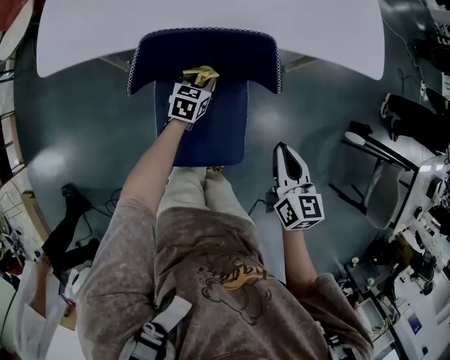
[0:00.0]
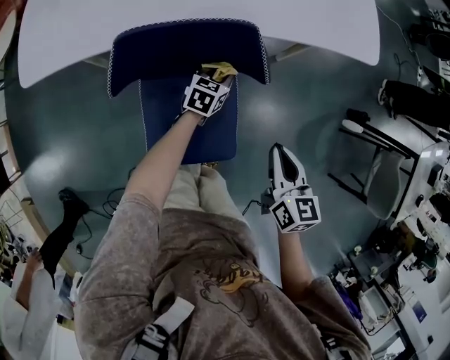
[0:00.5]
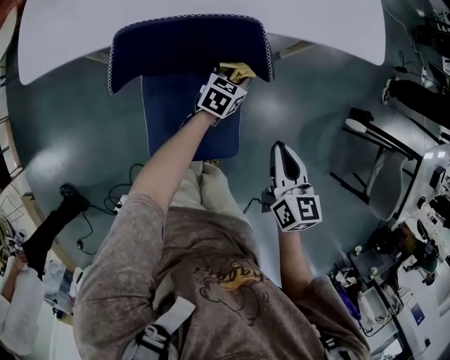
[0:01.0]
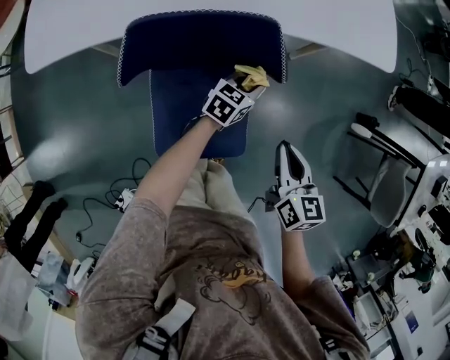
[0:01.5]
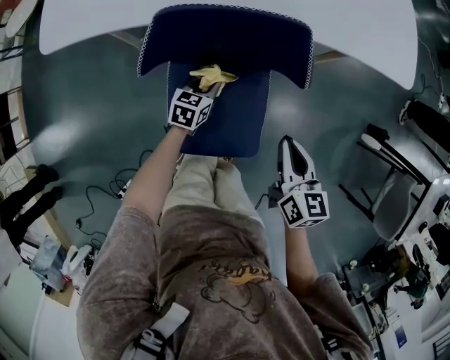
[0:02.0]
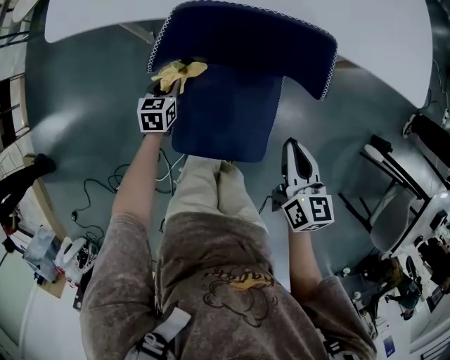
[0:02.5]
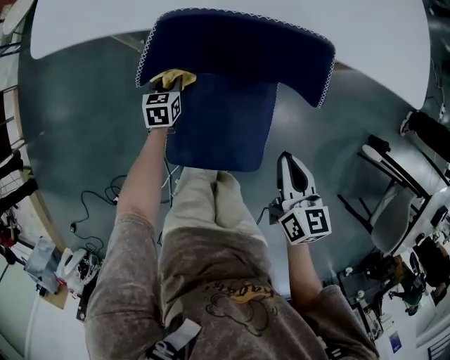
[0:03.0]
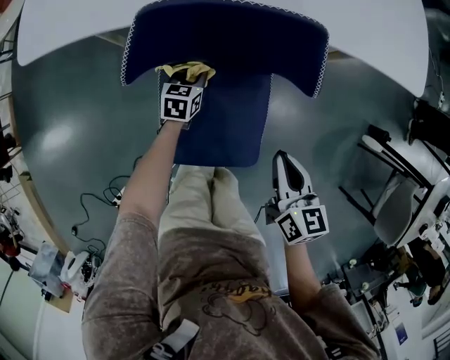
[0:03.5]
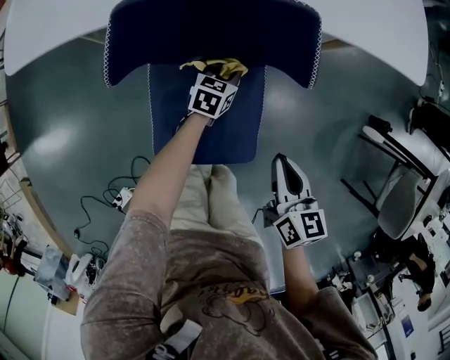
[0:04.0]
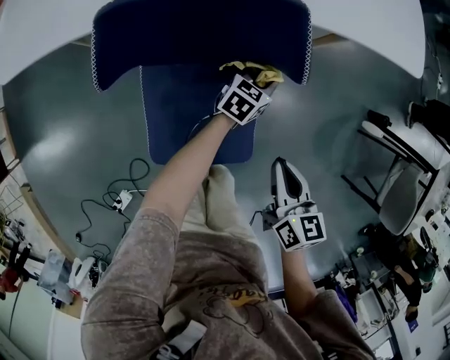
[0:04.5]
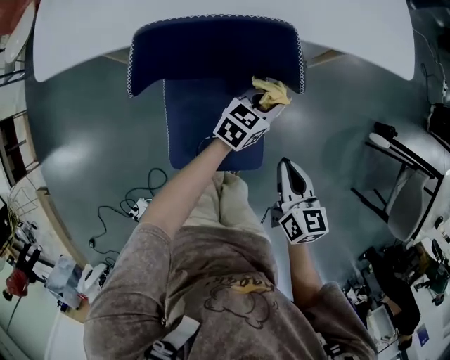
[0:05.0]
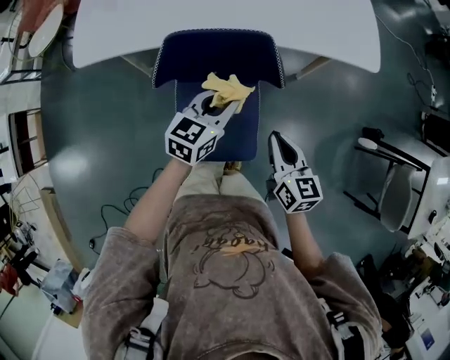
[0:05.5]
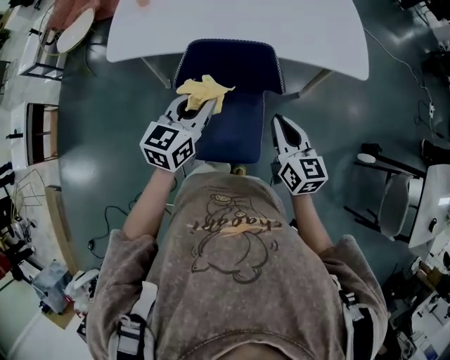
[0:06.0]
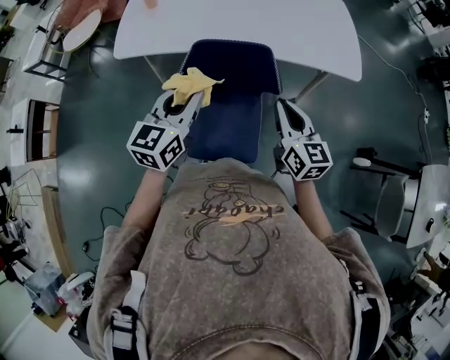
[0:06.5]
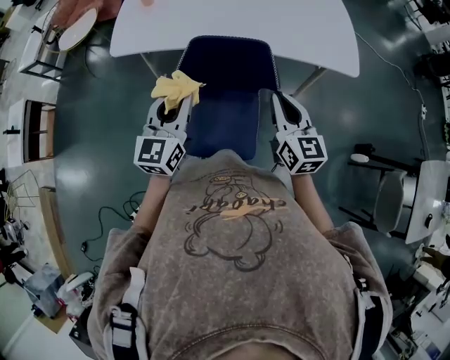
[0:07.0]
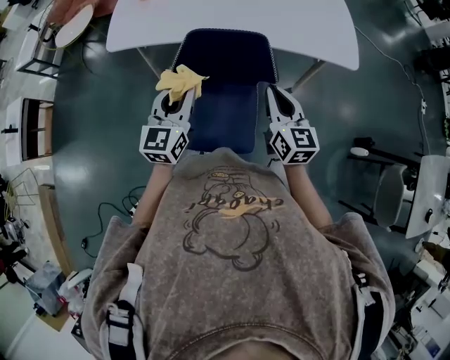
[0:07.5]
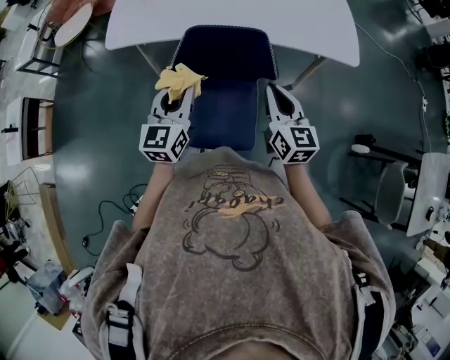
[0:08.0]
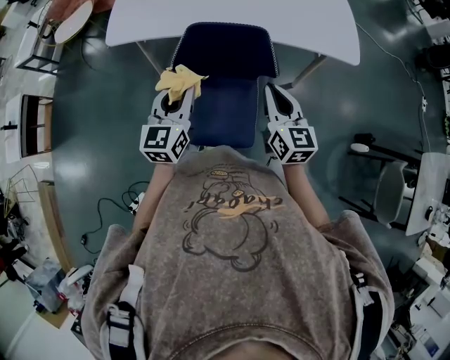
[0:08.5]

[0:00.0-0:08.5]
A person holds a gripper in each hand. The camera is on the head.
0:00.0 to 0:02.0: The right gripper changes place by about 5 cm. Meanwhile the left gripper heads backward, covering some 5 cm, and goes to the right and returns, roughly 15 cm each way.
0:02.0 to 0:04.0: The left gripper is displaced to the right and downward by some 10 cm, while the right gripper heads downward, covering approximately 5 cm.
0:04.0 to 0:06.5: The left gripper travels upward by roughly 50 cm, and angles its fingers upward, by some 30 degrees; the right gripper moves upward, roughly 30 cm, and changes its angle by some 30 degrees.
0:06.5 to 0:08.5: The left gripper moves downward, about 5 cm.

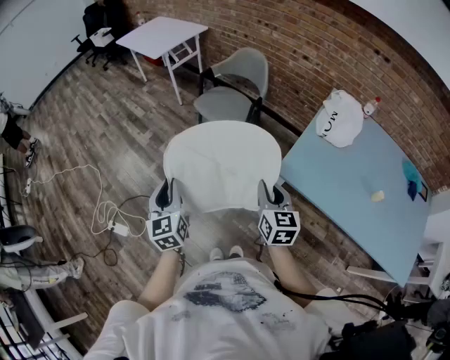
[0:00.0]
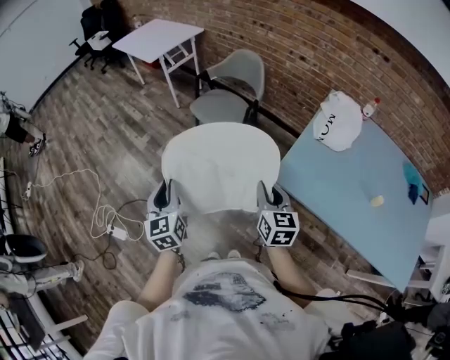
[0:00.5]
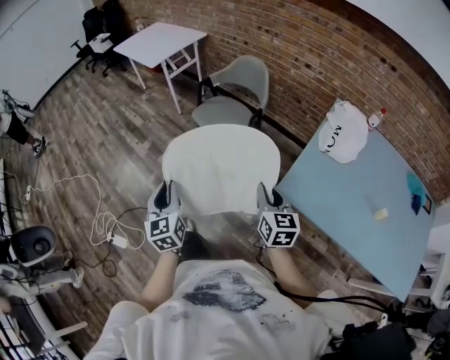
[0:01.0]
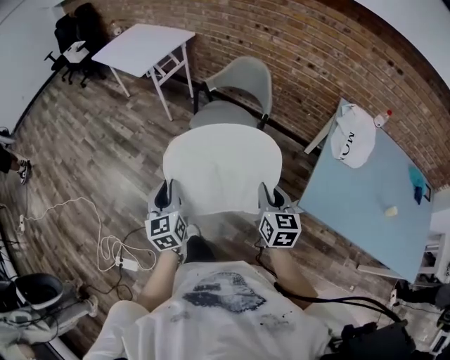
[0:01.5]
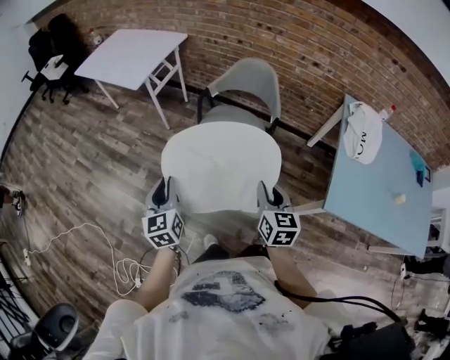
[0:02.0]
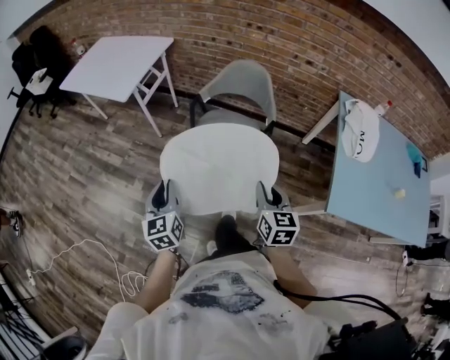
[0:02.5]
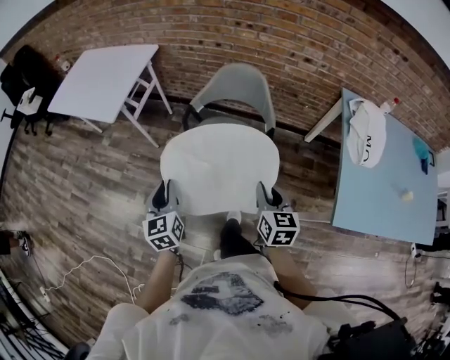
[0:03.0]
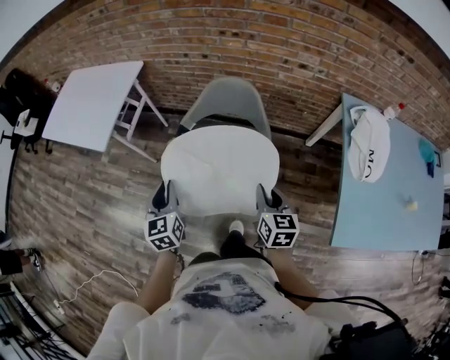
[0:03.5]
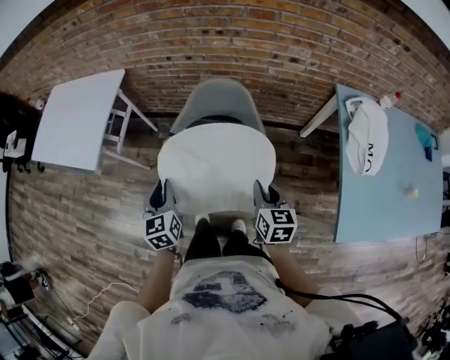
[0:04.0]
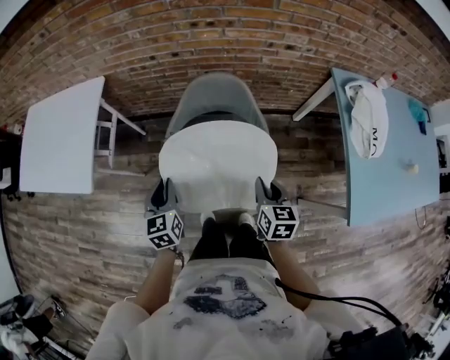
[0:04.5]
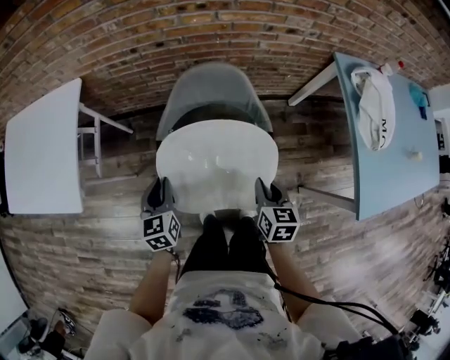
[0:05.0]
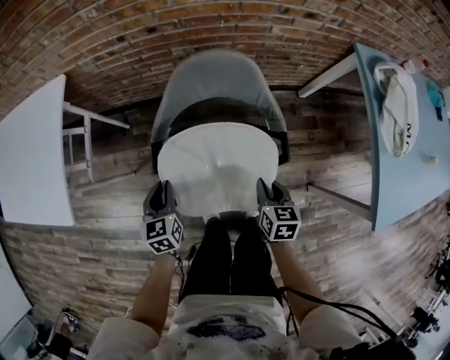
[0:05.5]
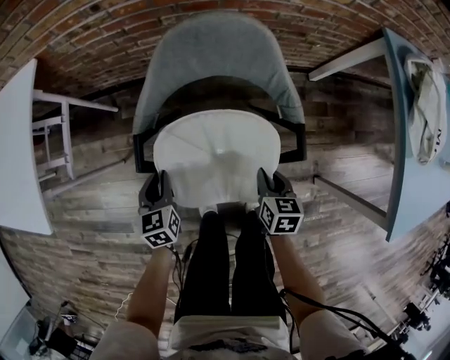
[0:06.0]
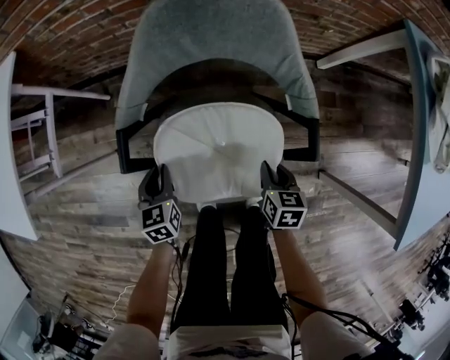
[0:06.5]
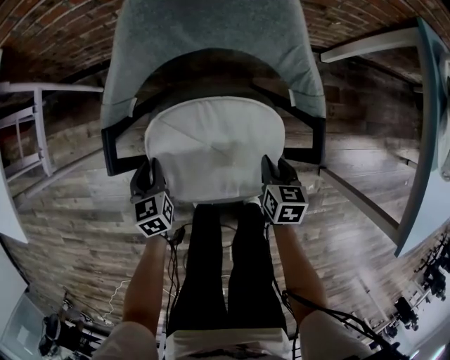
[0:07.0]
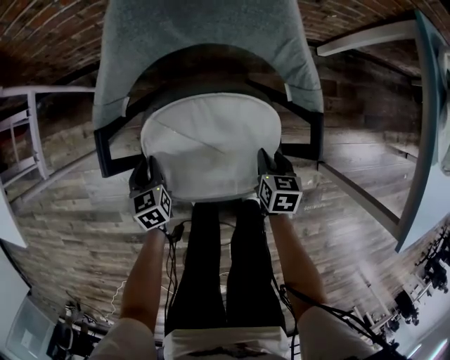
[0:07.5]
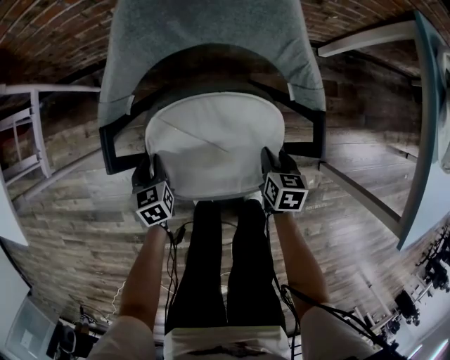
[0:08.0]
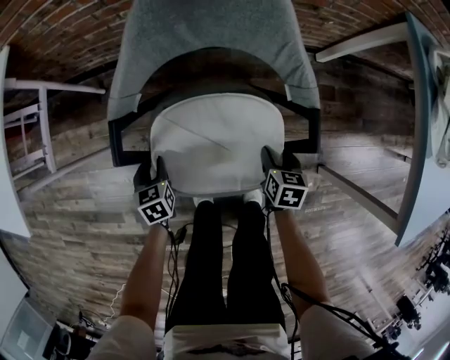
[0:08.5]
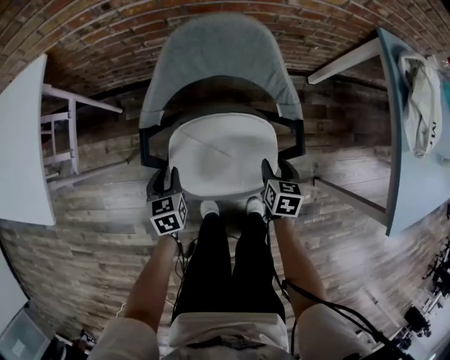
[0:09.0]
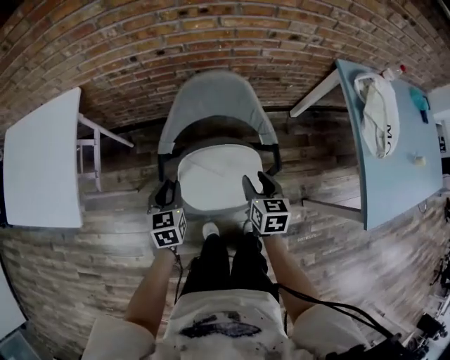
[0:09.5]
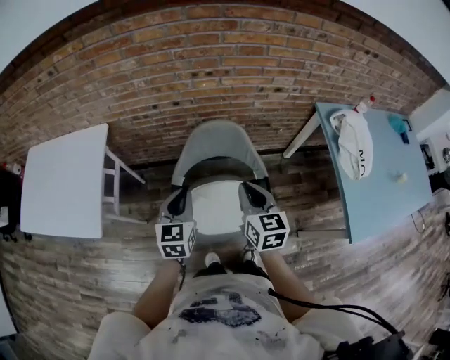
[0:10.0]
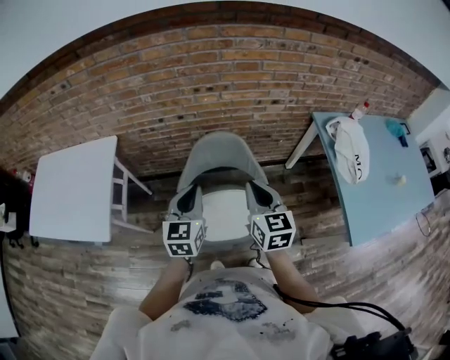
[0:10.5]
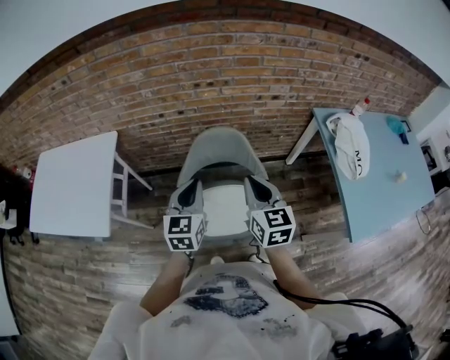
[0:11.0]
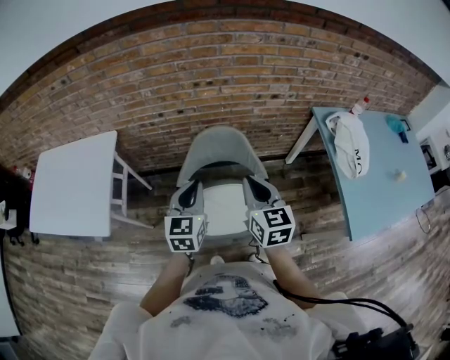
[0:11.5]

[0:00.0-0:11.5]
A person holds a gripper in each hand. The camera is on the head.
0:00.0 to 0:02.0: Both grippers move forward and to the left, some 40 cm.
0:02.0 to 0:04.0: Both grippers move forward, approximately 35 cm.
0:04.0 to 0:06.0: The right gripper heads downward, covering approximately 35 cm, and turns by approximately 20 degrees. Meanwhile the left gripper heads downward and forward, covering some 40 cm, and swivels approximately 20 degrees.
0:06.0 to 0:07.5: Both grippers move downward, about 15 cm.
0:07.5 to 0:09.5: The two grippers go roughly 35 cm upward. The right gripper opens its fingers.
0:09.5 to 0:11.5: The two grippers go some 30 cm upward. The right gripper swivels approximately 30 degrees, and closes up. Meanwhile the left gripper rotates about 20 degrees, and closes its fingers.

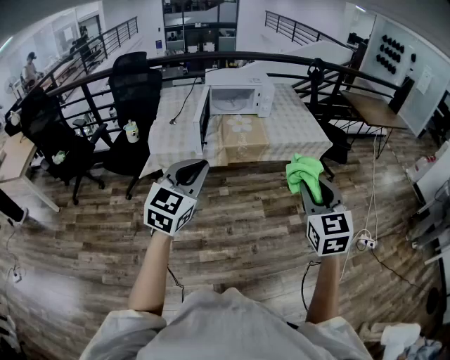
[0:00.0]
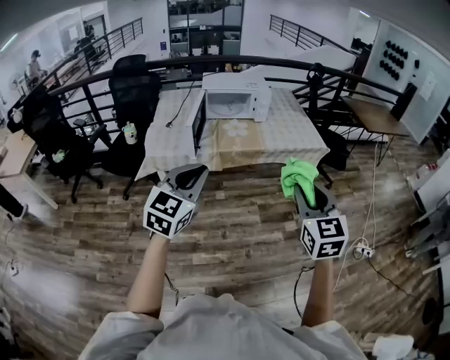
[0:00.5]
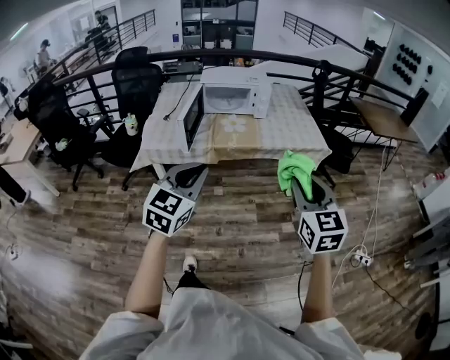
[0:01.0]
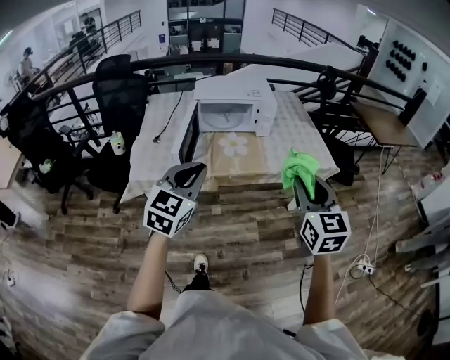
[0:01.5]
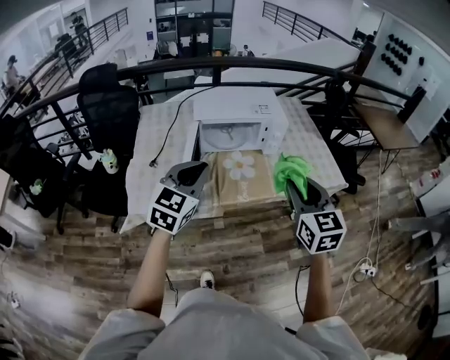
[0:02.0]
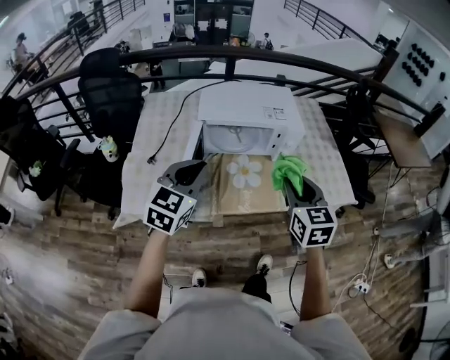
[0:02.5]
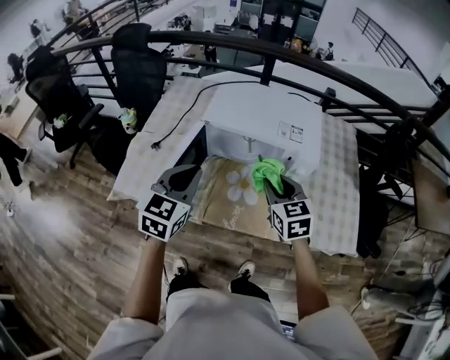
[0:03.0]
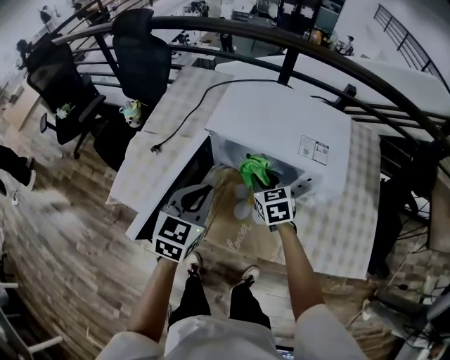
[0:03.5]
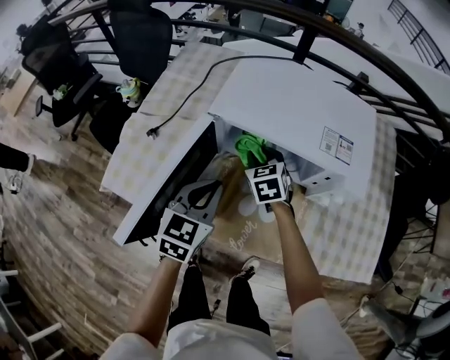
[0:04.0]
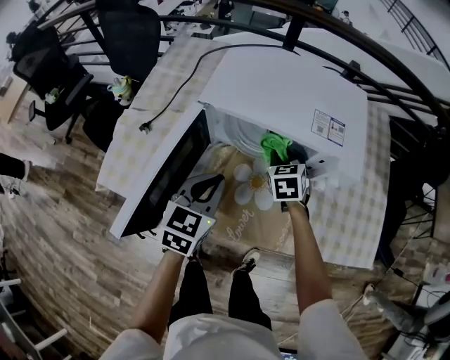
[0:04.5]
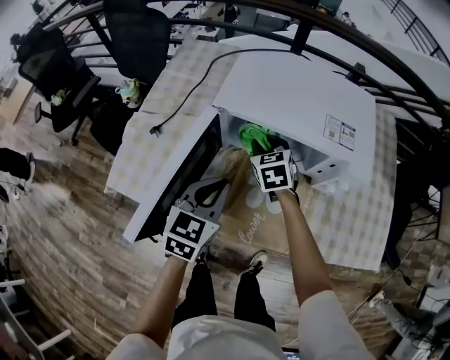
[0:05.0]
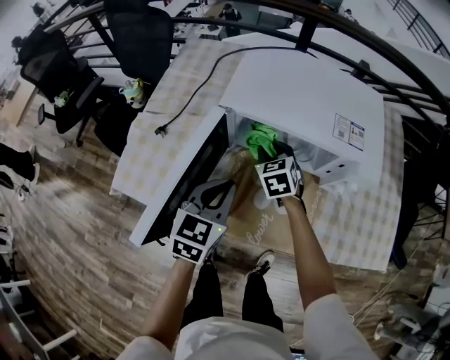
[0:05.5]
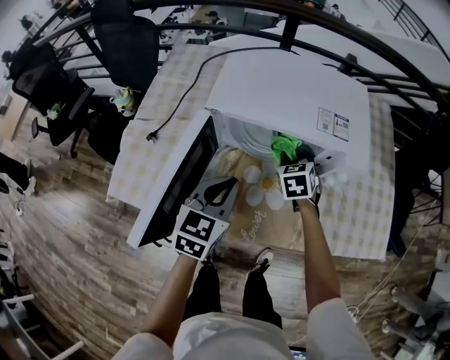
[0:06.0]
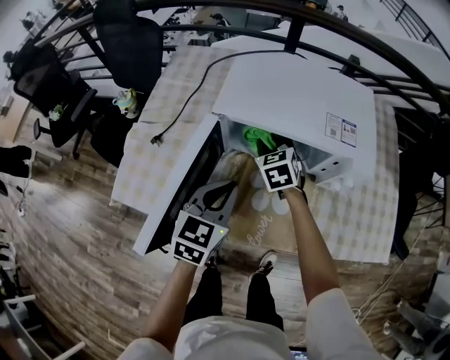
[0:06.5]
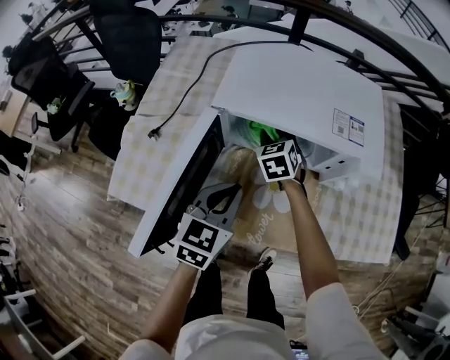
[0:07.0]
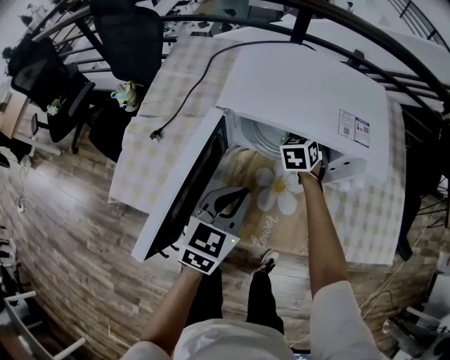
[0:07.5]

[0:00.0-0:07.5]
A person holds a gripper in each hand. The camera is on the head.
0:00.0 to 0:02.0: The two grippers travel together, forward, approximately 40 cm.
0:02.0 to 0:04.0: The right gripper shifts by about 60 cm, and turns by about 40 degrees, while the left gripper moves about 30 cm, and turns by about 40 degrees.
0:04.0 to 0:05.5: The right gripper travels to the right and back again, roughly 10 cm each way.
0:05.5 to 0:07.5: The right gripper swings left and right, some 10 cm each way, with 2 reversals, and swivels roughly 20 degrees.
